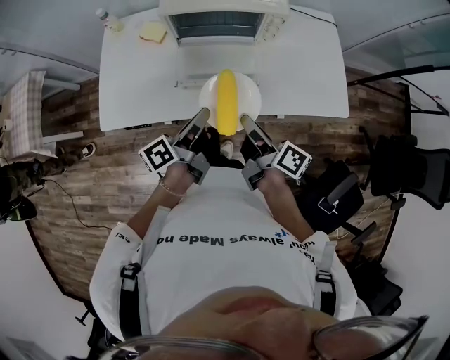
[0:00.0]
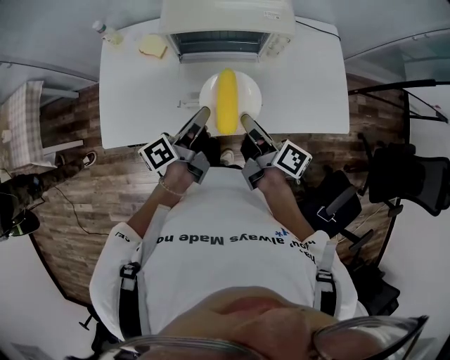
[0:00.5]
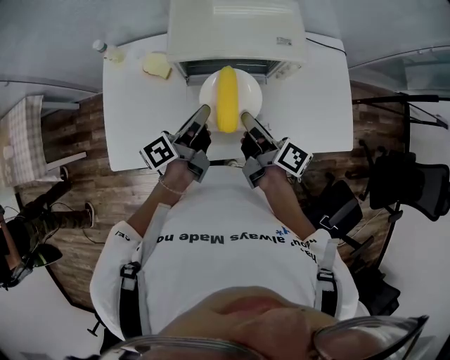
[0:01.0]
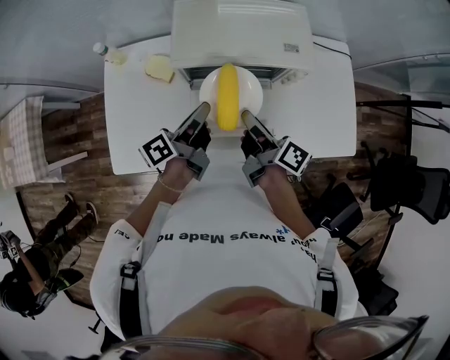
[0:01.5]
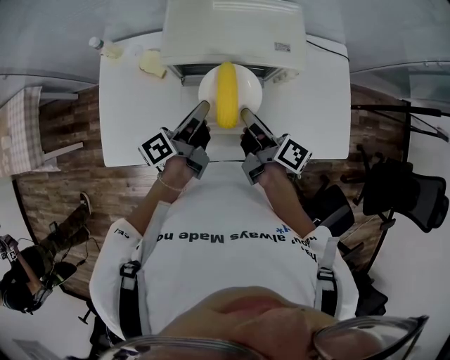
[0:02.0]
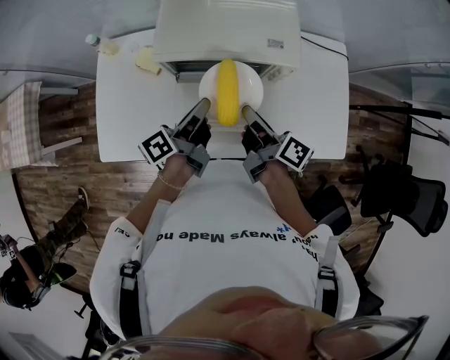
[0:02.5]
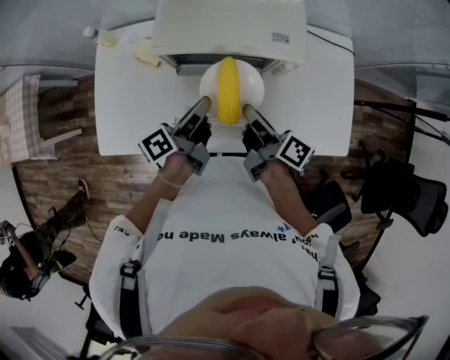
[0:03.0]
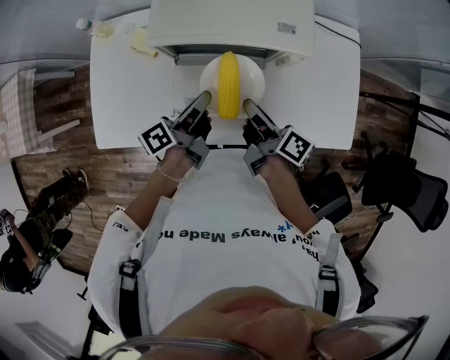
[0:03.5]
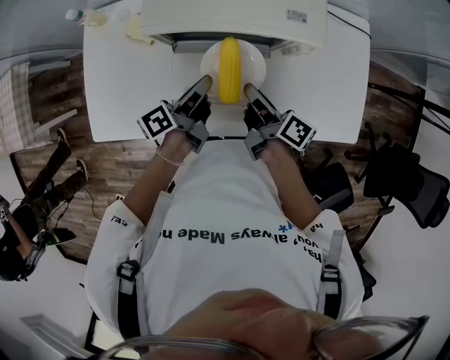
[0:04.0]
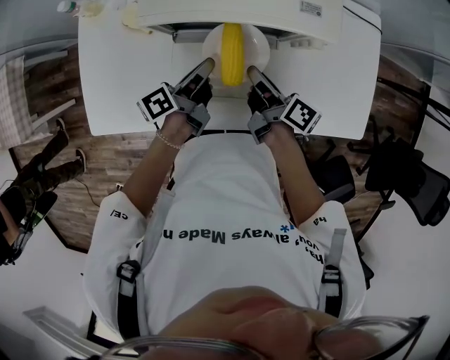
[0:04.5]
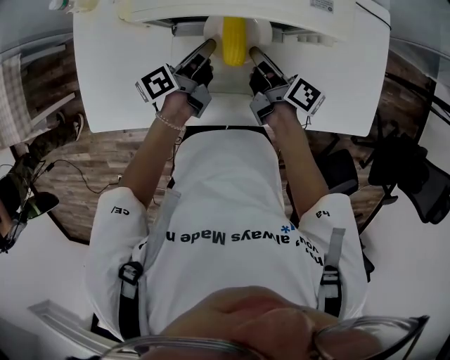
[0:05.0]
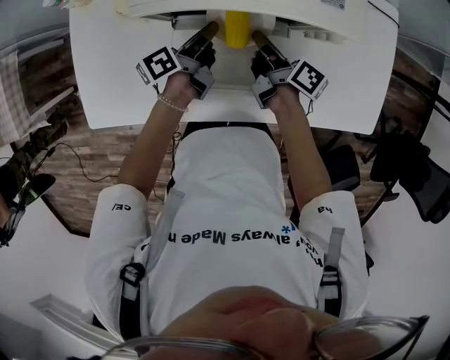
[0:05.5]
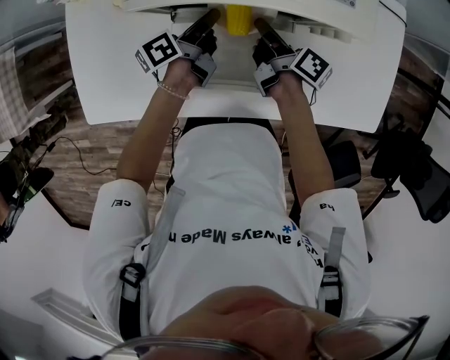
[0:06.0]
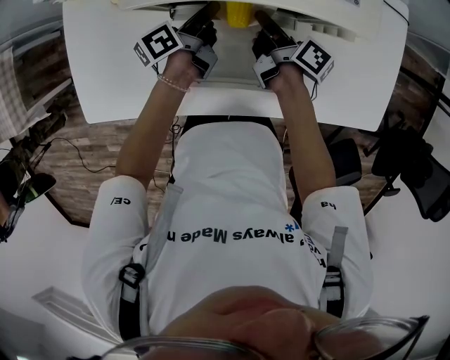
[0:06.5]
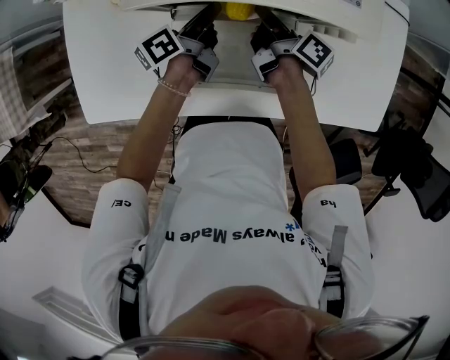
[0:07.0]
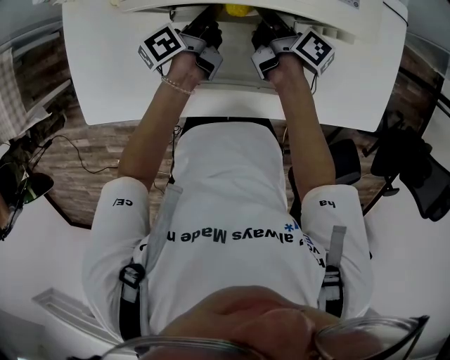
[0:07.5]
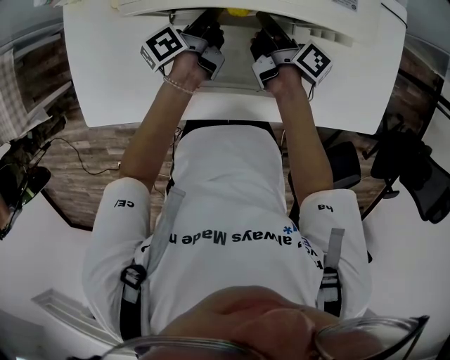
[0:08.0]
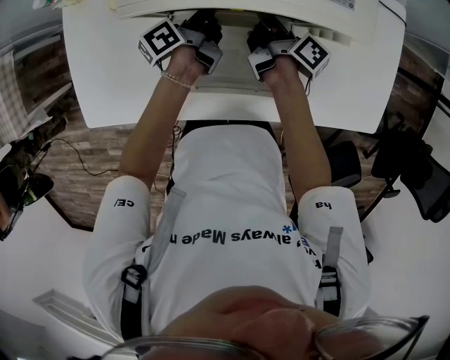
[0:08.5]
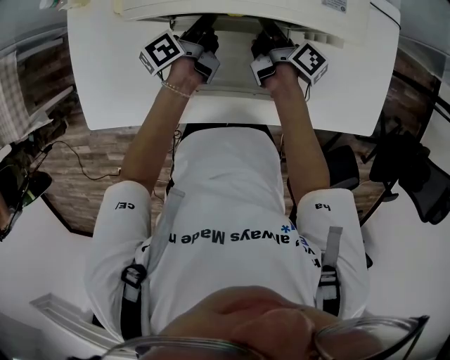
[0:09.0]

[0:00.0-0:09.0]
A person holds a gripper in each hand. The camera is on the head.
0:00.0 to 0:02.0: The two grippers go about 25 cm forward.
0:02.0 to 0:04.5: Both grippers move downward, some 15 cm.
0:04.5 to 0:07.0: The two grippers go approximately 10 cm forward and downward.
0:07.0 to 0:09.0: The grippers make only small movements.

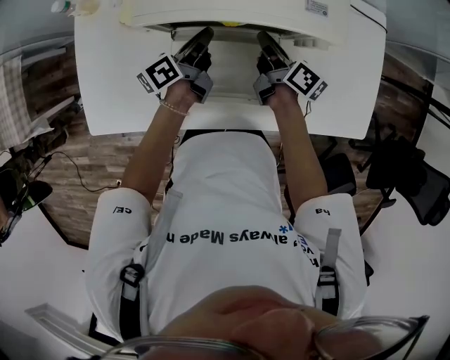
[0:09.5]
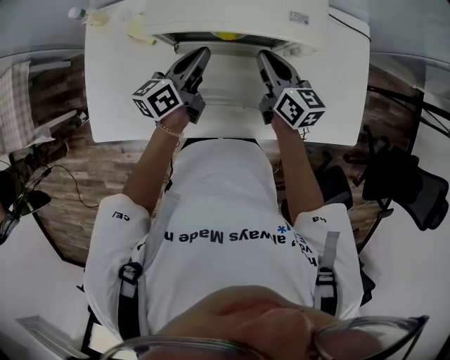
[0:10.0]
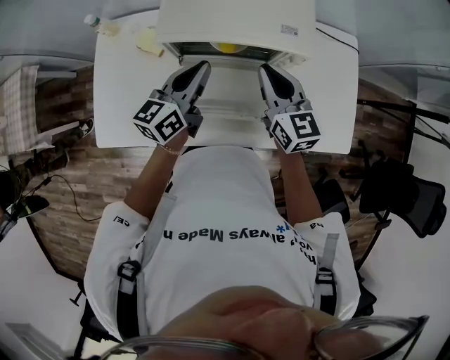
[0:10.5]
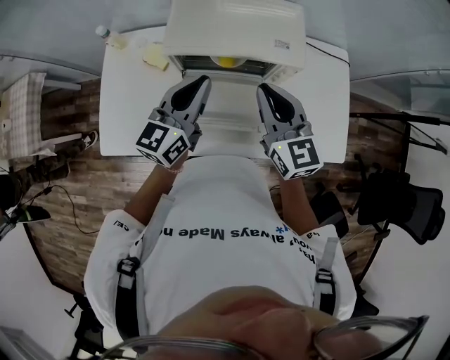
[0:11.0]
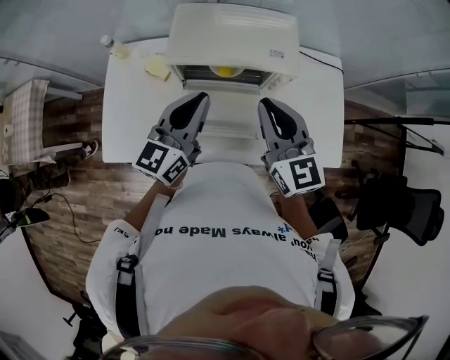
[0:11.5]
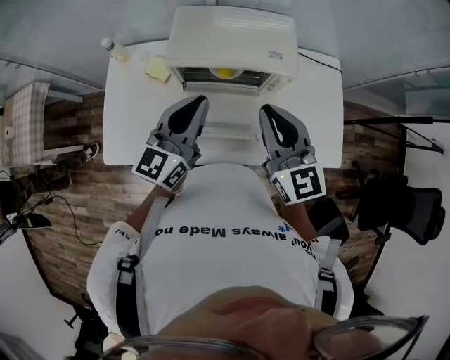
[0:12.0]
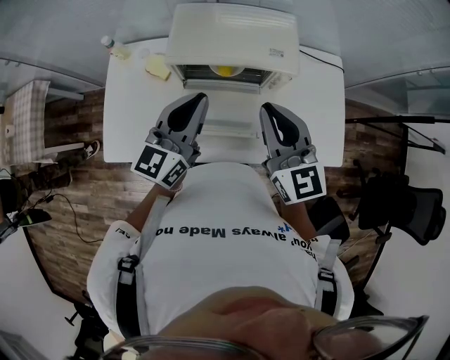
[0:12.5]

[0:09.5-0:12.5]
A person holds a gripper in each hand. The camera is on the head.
0:09.5 to 0:11.0: The grippers both shift upward by roughly 25 cm. The left gripper rolls clockwise, seen from behind, by about 50 degrees, while the right gripper rotates around the line of its fingers by some 60 degrees, counterclockwise from behind.
0:11.0 to 0:12.5: Both grippers move upward, some 5 cm.

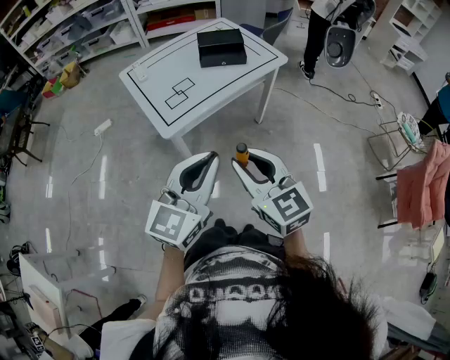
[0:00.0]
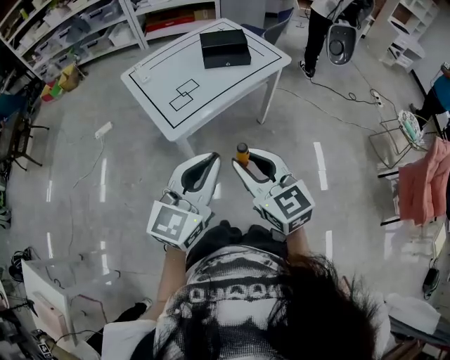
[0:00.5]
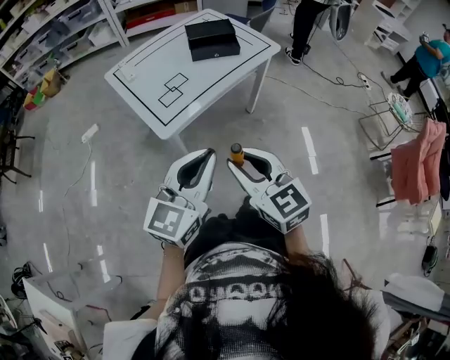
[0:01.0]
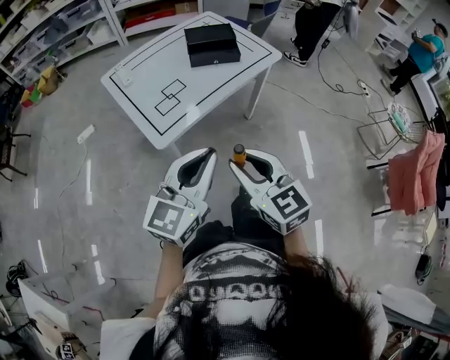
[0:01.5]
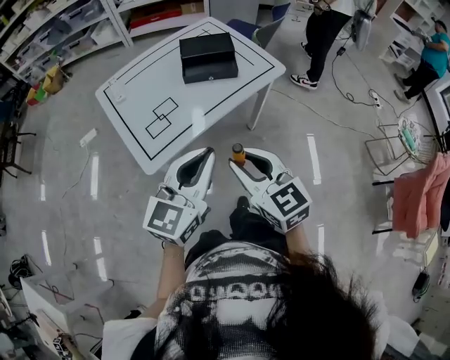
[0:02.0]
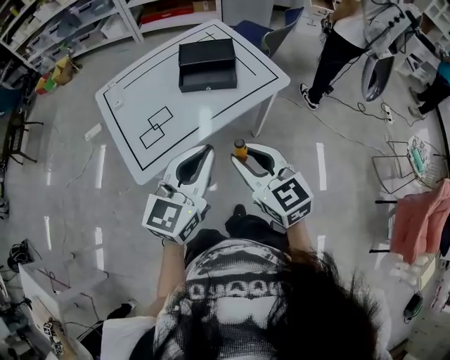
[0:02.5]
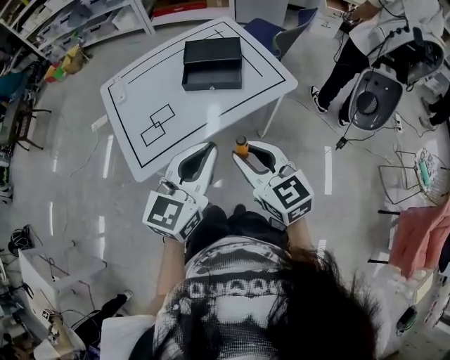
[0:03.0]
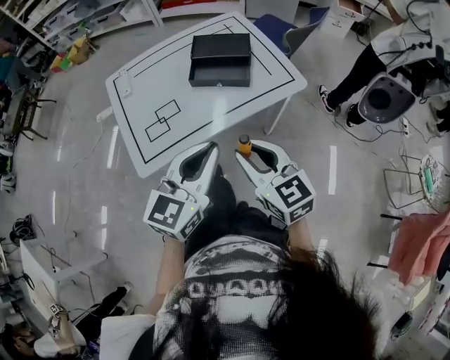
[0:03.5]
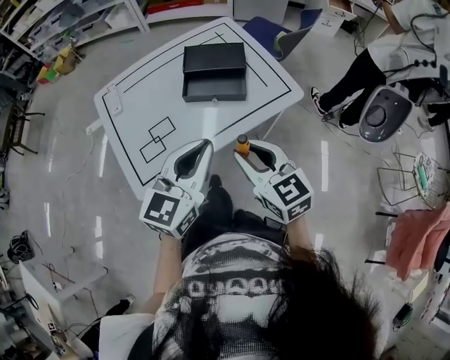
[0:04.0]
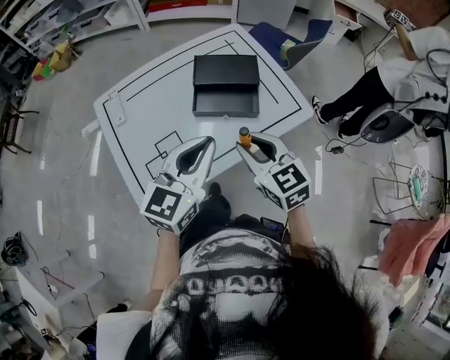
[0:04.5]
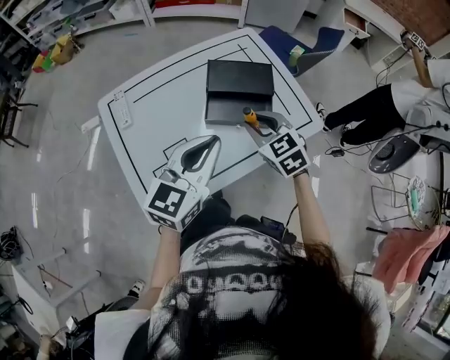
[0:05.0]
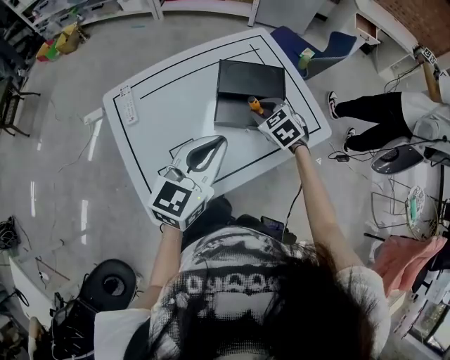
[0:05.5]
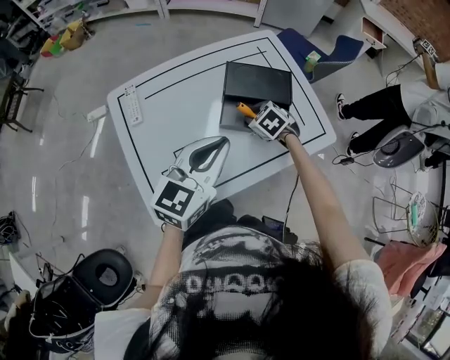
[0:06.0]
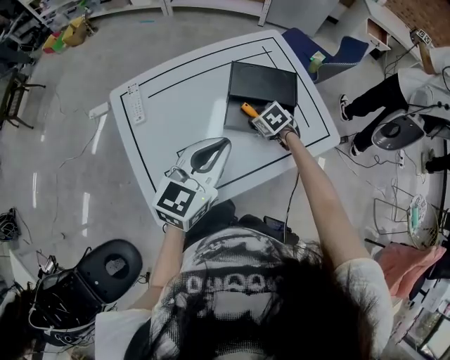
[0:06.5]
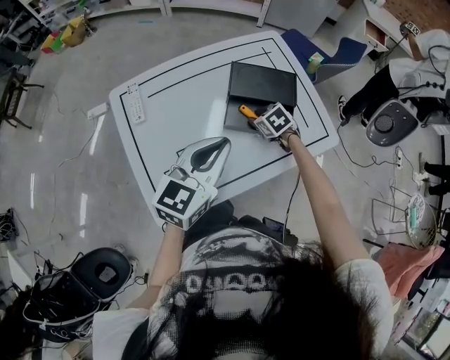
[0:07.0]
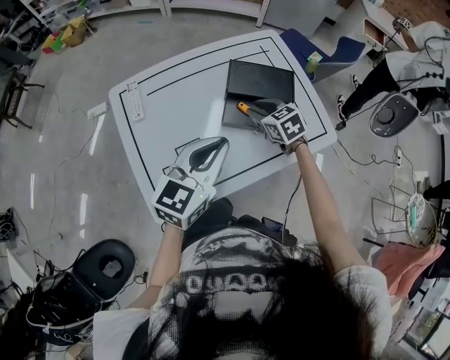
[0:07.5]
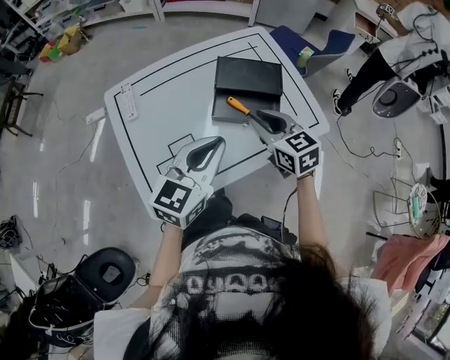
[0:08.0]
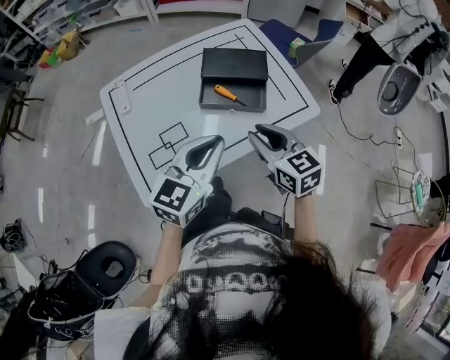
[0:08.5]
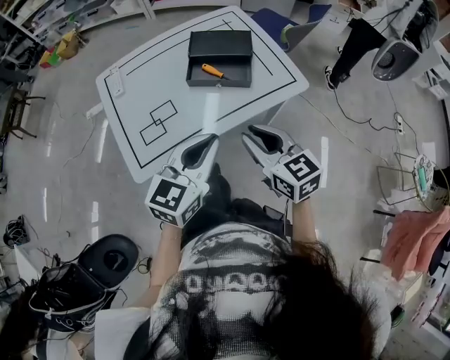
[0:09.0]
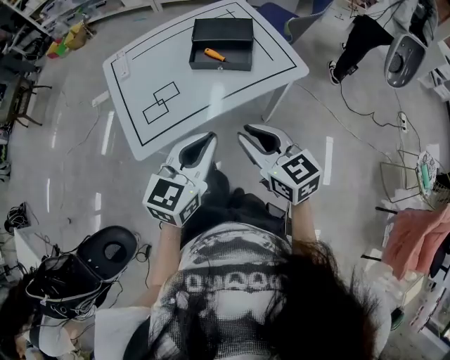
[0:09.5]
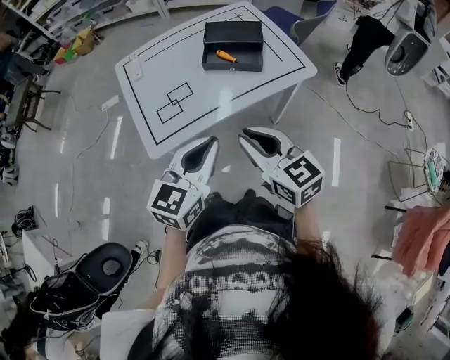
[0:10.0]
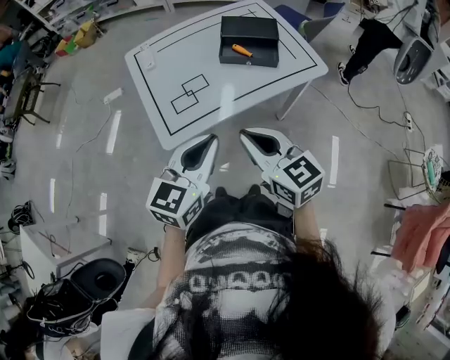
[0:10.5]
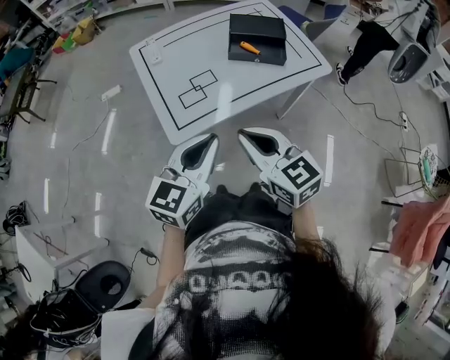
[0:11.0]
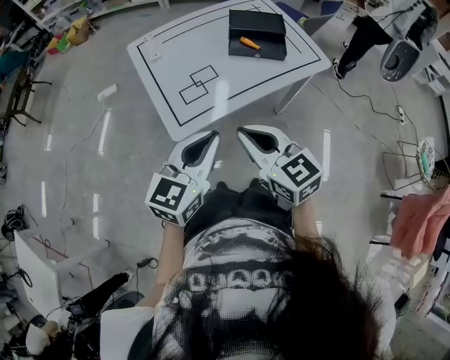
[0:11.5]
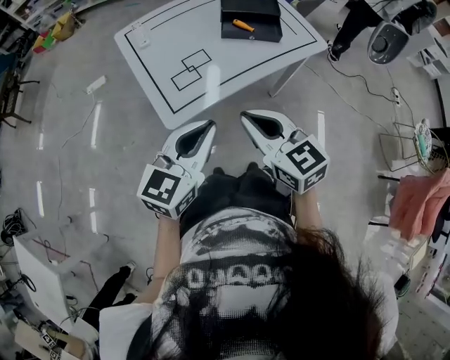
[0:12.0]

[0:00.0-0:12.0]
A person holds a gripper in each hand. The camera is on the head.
0:00.0 to 0:02.0: The grippers both shift forward by about 20 cm.
0:02.0 to 0:04.0: The right gripper travels forward and to the right by about 25 cm. The left gripper travels forward by approximately 20 cm.
0:04.0 to 0:06.0: The right gripper is displaced forward and downward by roughly 40 cm, and tips its fingers downward by about 40 degrees; the left gripper is displaced forward and to the left by roughly 20 cm.
0:06.0 to 0:08.0: The right gripper goes roughly 20 cm upward and backward, and tips its fingers upward by roughly 30 degrees.
0:08.0 to 0:10.0: The two grippers go roughly 30 cm backward.
0:10.0 to 0:12.0: The grippers both shift to the left by some 15 cm.

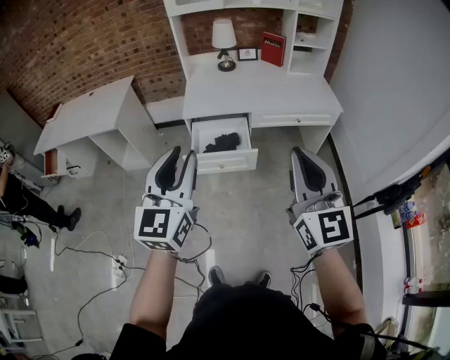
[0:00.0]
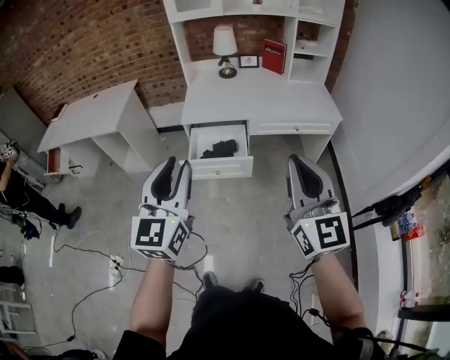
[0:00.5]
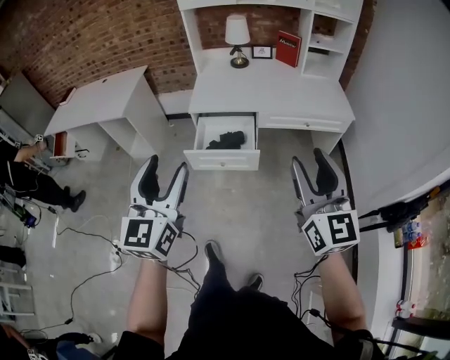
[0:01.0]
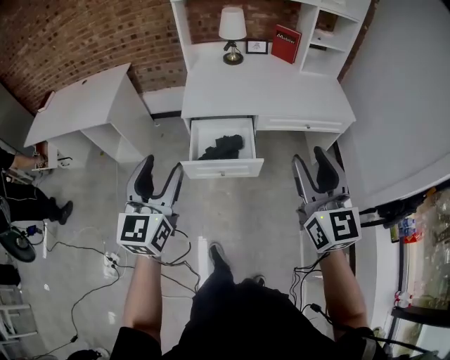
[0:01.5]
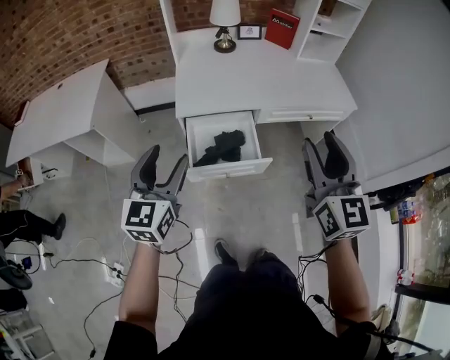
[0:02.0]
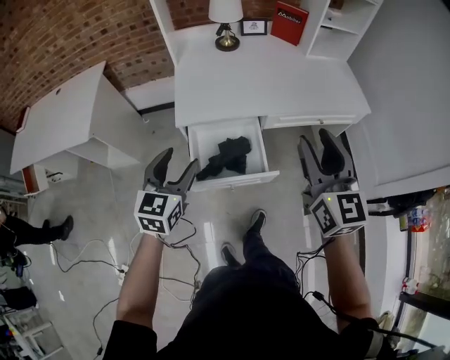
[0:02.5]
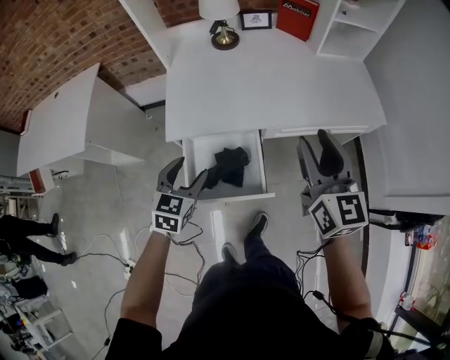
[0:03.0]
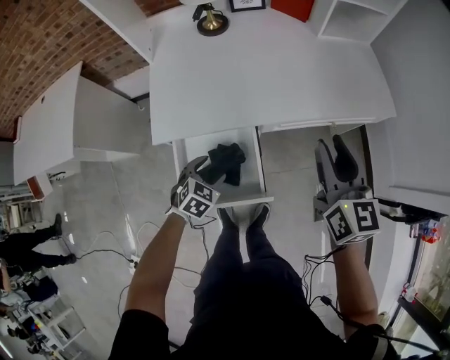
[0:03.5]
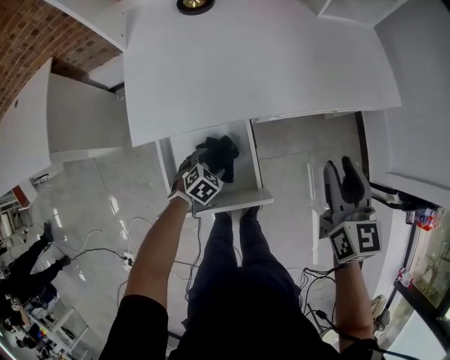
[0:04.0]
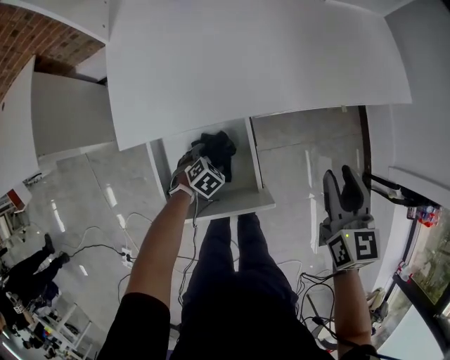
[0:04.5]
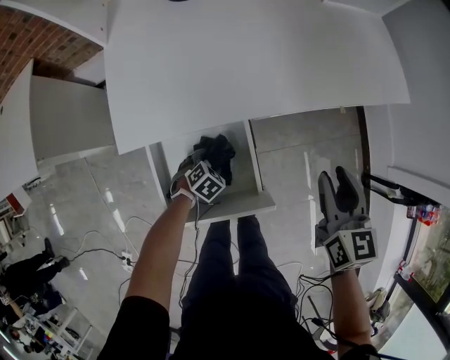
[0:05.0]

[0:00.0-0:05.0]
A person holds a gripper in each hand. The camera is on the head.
0:00.0 to 0:02.5: The left gripper shifts approximately 40 cm forward and downward, turns by approximately 30 degrees, and opens its fingers. The right gripper shifts some 35 cm forward, and opens.
0:02.5 to 0:05.0: The right gripper travels downward by roughly 25 cm, and turns by about 30 degrees. The left gripper is displaced downward by approximately 50 cm, and points its fingers approximately 50 degrees further downward.
